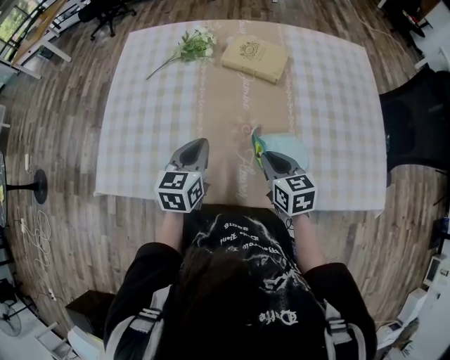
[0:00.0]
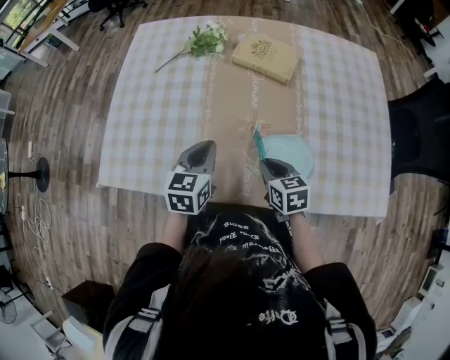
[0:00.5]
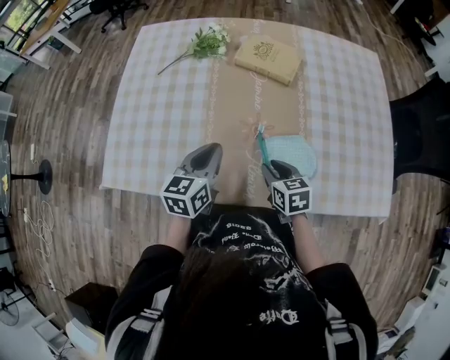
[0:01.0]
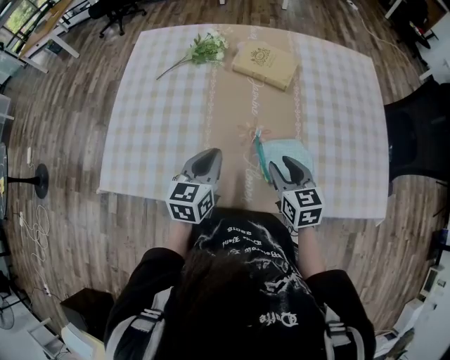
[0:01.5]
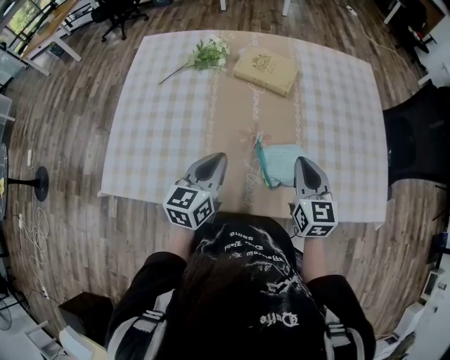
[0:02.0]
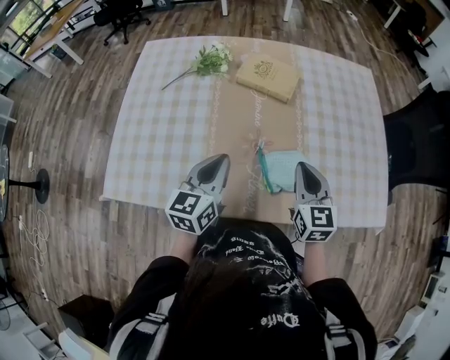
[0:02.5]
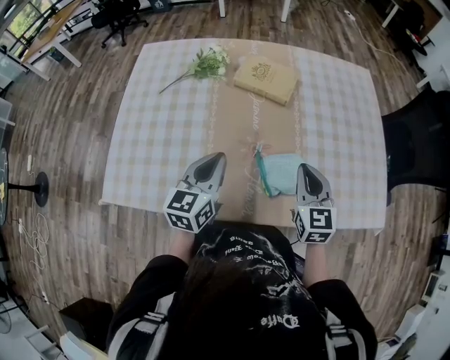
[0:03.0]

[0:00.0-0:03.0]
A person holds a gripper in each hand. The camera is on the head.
0:00.0 to 0:01.5: The right gripper opens up.
0:01.5 to 0:03.0: The two grippers go roughly 5 cm upward. The right gripper closes.

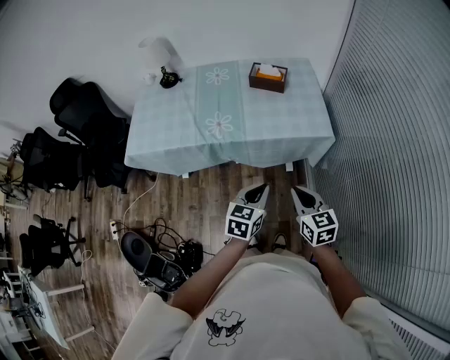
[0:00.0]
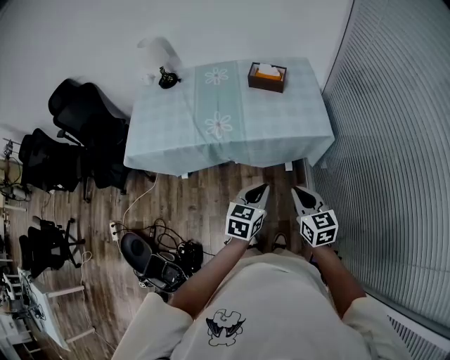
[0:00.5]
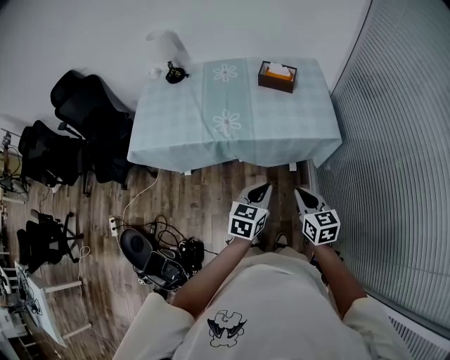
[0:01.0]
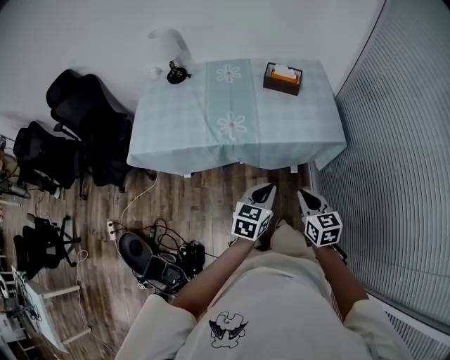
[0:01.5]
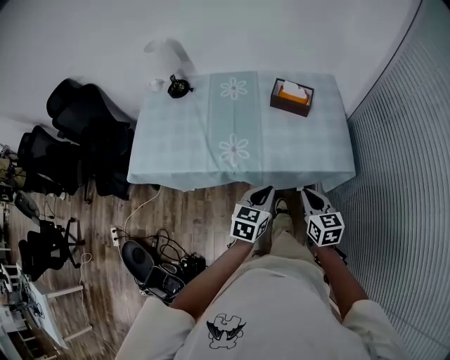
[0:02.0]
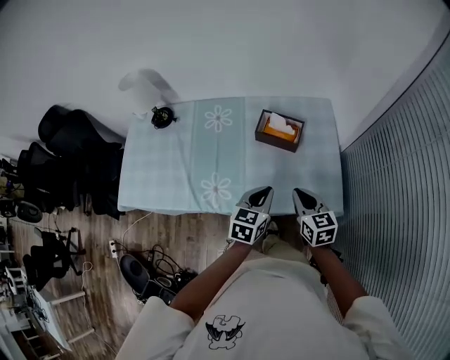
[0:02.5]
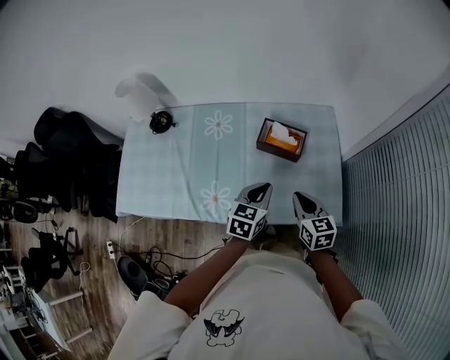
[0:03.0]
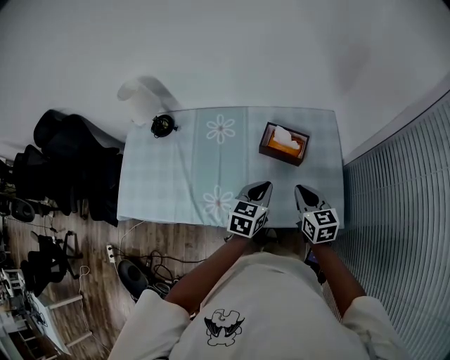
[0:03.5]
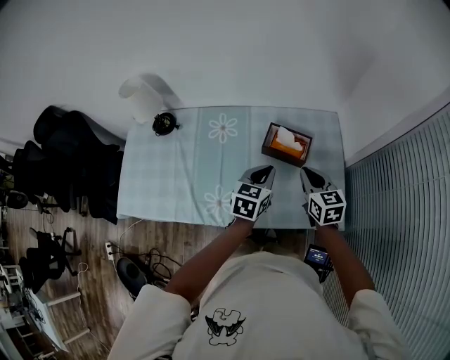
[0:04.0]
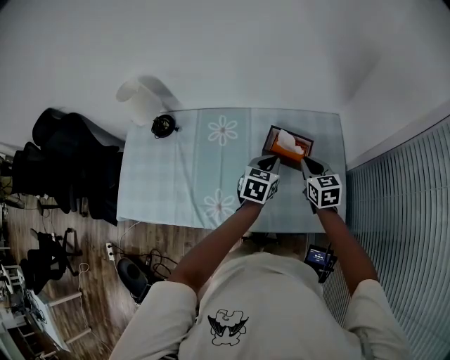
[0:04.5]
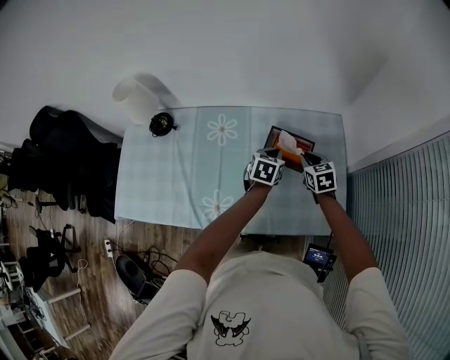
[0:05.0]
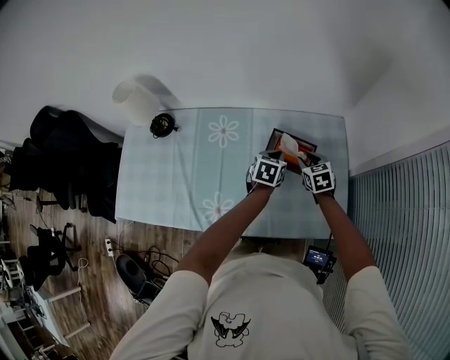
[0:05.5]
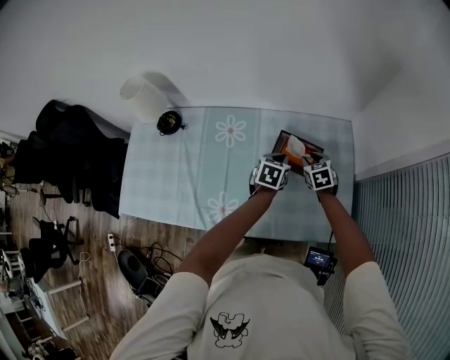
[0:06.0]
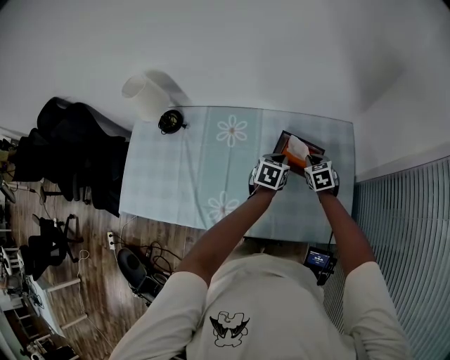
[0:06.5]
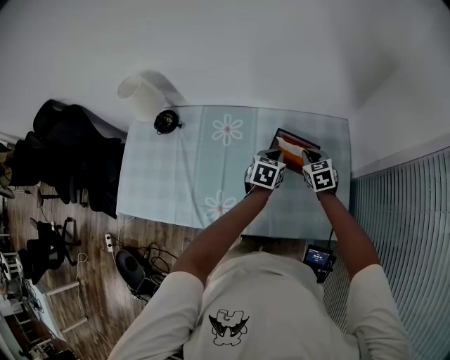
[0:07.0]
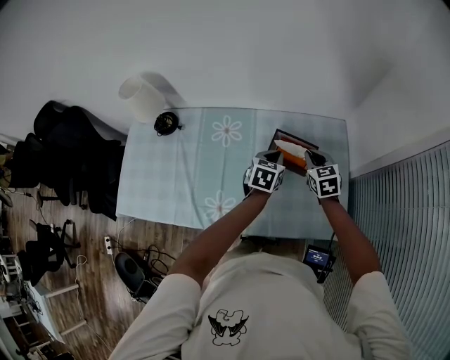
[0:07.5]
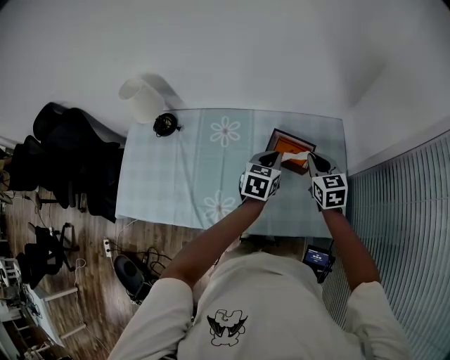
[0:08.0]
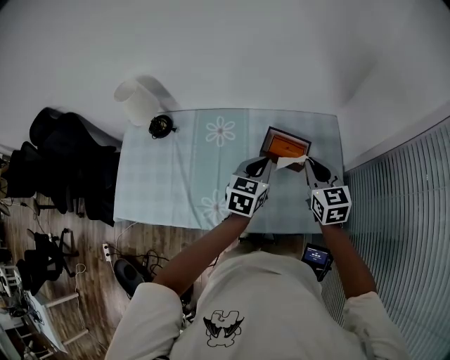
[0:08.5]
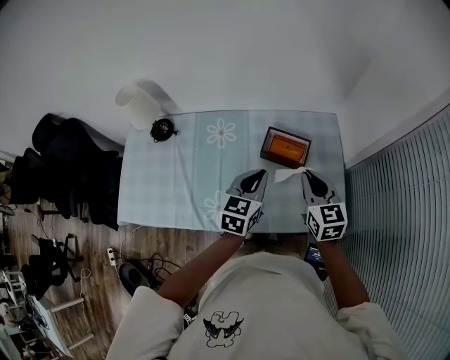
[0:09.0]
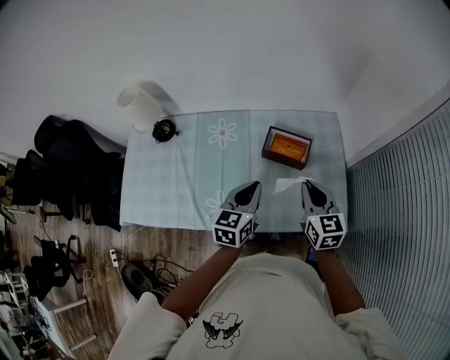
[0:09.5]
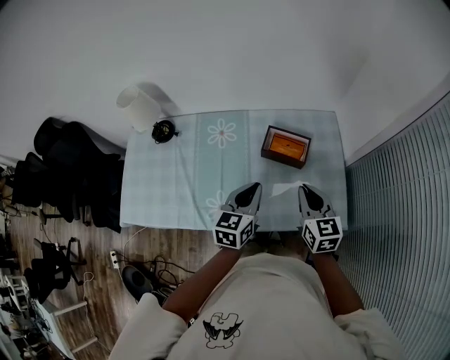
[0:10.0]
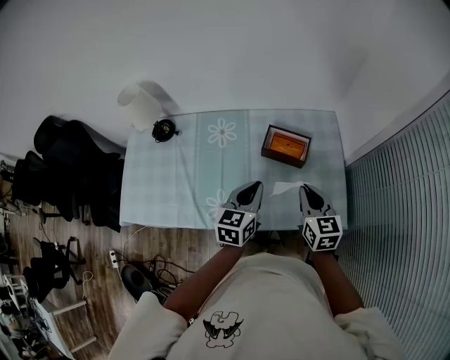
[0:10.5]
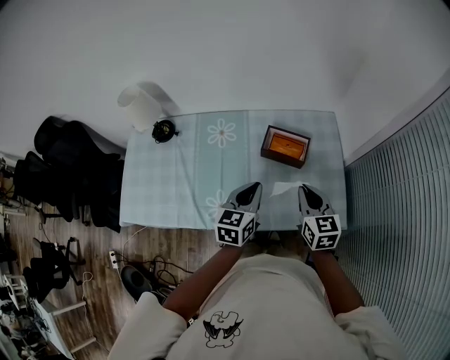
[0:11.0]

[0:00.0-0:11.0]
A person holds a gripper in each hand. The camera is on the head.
0:00.0 to 0:02.0: The right gripper moves forward, some 20 cm. Meanwhile the left gripper travels forward and to the left by roughly 20 cm.
0:02.0 to 0:03.5: Both grippers travel together forward, roughly 25 cm.
0:03.5 to 0:05.5: The grippers both shift forward and downward by about 20 cm. The right gripper turns by some 20 degrees, and opens.
0:05.5 to 0:07.5: The right gripper travels upward by roughly 5 cm, and closes its fingers.
0:07.5 to 0:09.0: The left gripper shifts approximately 15 cm upward and backward. Meanwhile the right gripper shifts roughly 20 cm backward and upward.
0:09.0 to 0:11.0: The right gripper moves roughly 5 cm. Meanwhile the left gripper moves roughly 5 cm.

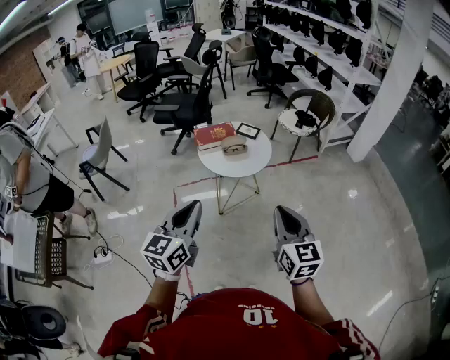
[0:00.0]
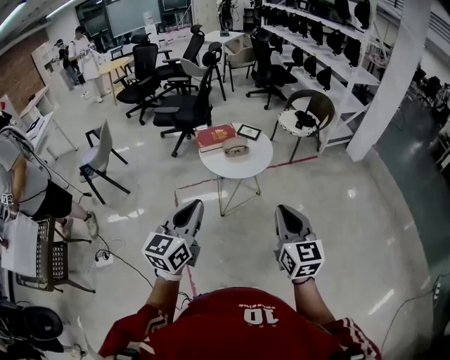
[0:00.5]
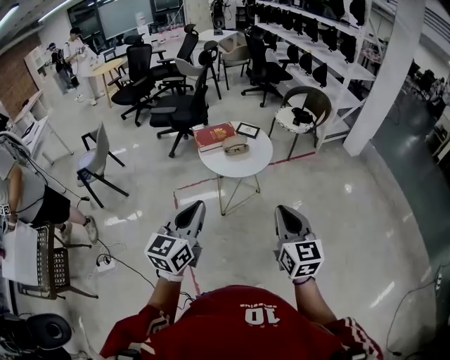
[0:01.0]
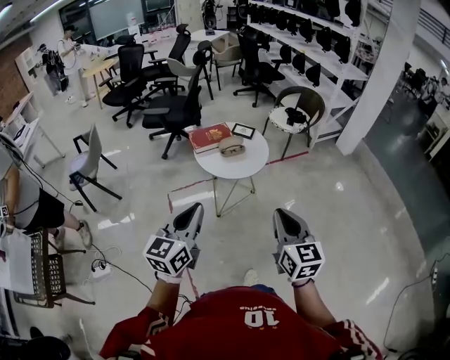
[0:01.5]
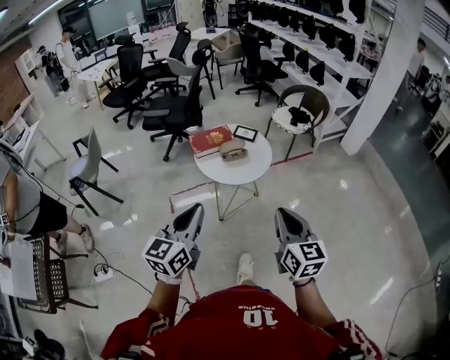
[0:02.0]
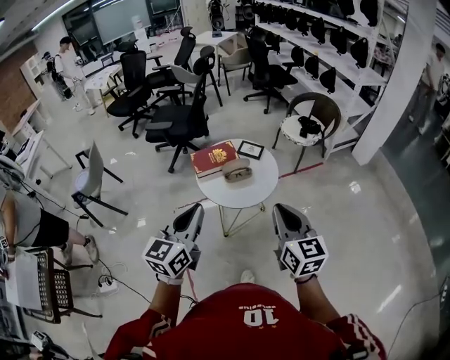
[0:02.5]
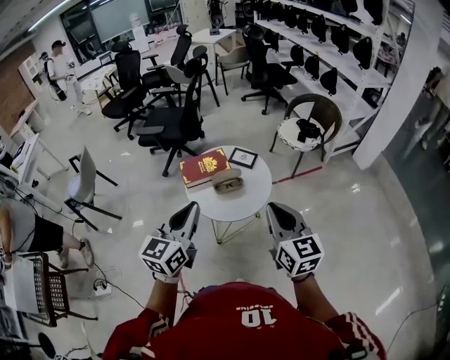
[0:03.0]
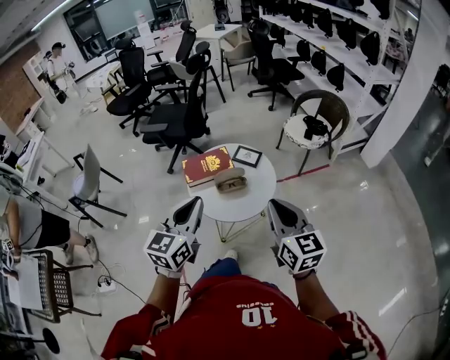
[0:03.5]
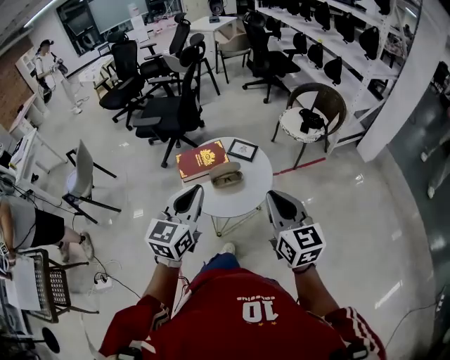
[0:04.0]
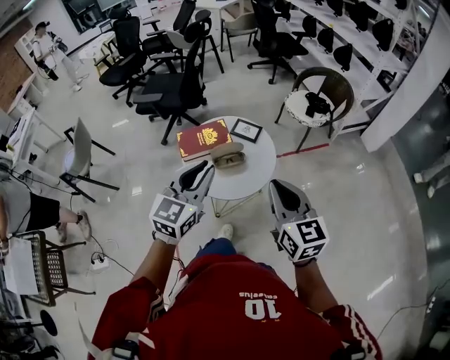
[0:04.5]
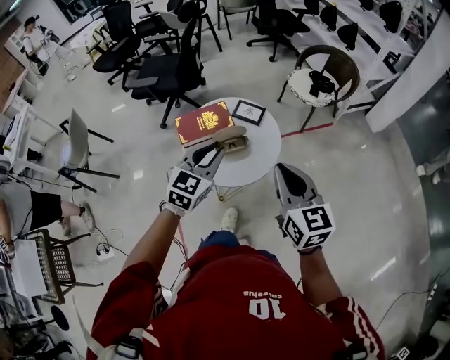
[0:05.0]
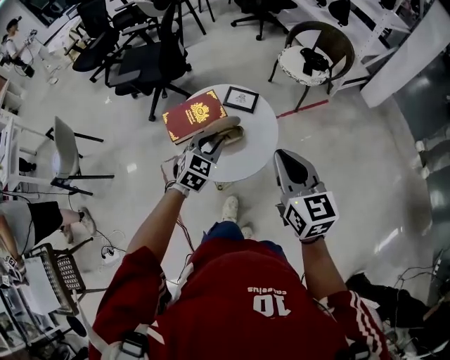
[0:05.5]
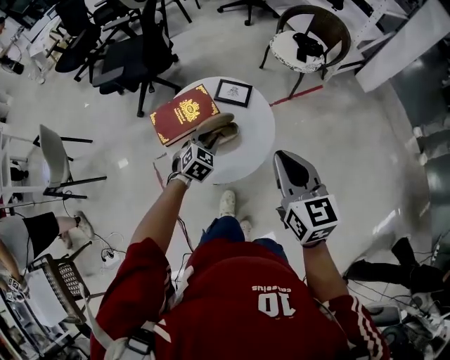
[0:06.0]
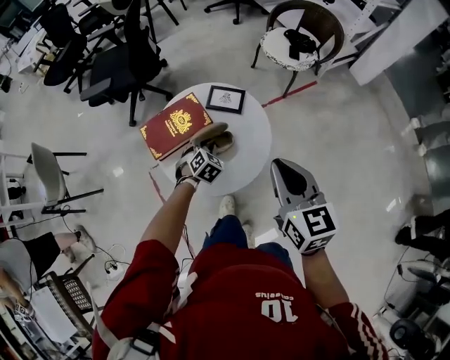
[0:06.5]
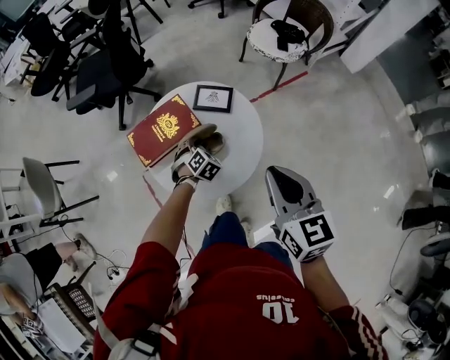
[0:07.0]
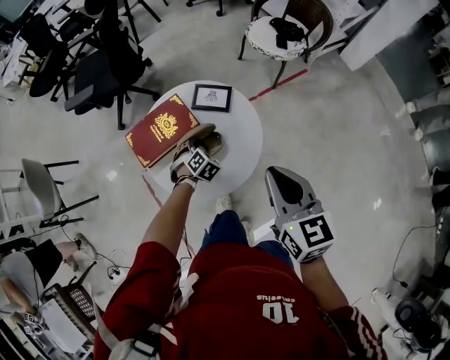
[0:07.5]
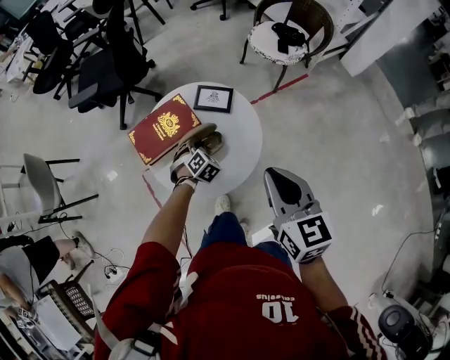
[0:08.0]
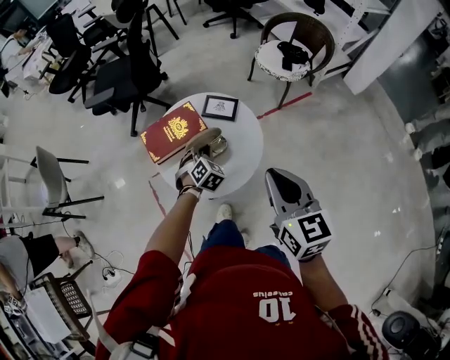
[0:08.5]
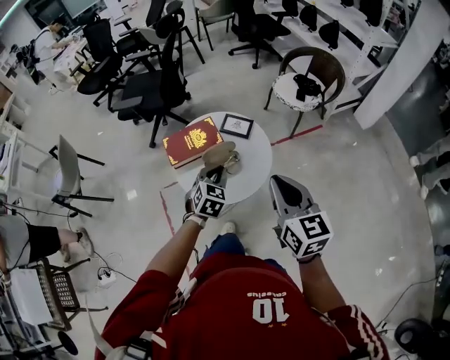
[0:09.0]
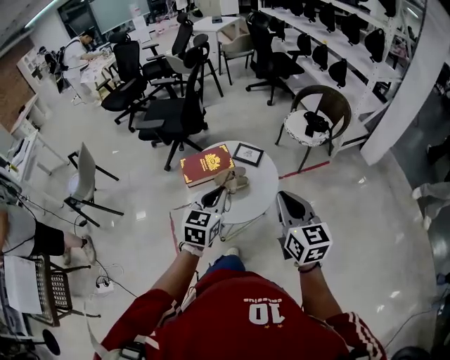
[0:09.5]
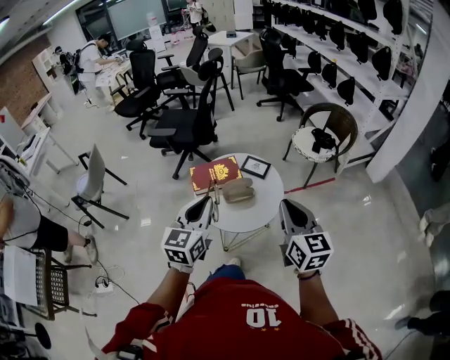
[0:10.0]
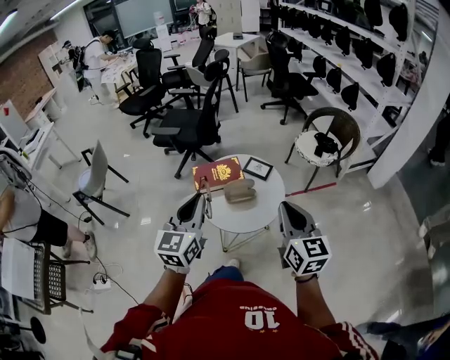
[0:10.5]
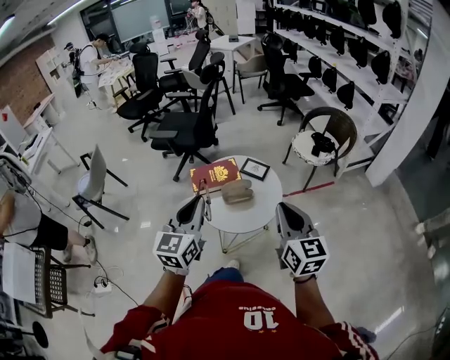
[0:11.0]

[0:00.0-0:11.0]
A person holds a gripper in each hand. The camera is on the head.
0:00.0 to 0:02.0: The right gripper shifts about 10 cm to the left and forward. Meanwhile the left gripper goes some 10 cm forward and to the left.
0:02.0 to 0:03.5: Both grippers move forward, roughly 25 cm.
0:03.5 to 0:05.5: The right gripper is displaced forward and downward by roughly 10 cm. Meanwhile the left gripper shifts about 30 cm downward and forward, and swivels roughly 40 degrees.
0:05.5 to 0:07.5: The right gripper heads downward and forward, covering some 10 cm. The left gripper goes approximately 25 cm downward and forward, and rotates about 30 degrees.
0:07.5 to 0:09.0: The right gripper shifts about 10 cm backward and upward; the left gripper is displaced upward and backward by roughly 25 cm, and swivels about 30 degrees.
0:09.0 to 0:11.0: The left gripper travels upward, backward and to the left by about 30 cm, and points its fingers approximately 40 degrees further upward, while the right gripper travels backward and upward by some 10 cm.

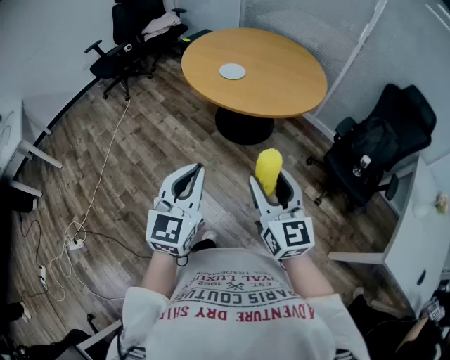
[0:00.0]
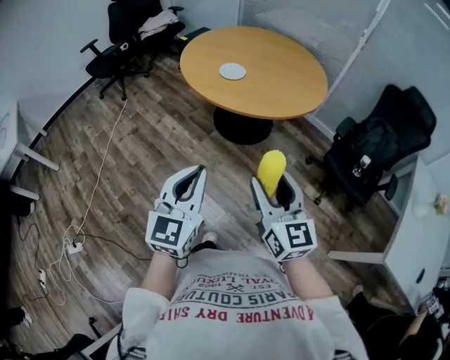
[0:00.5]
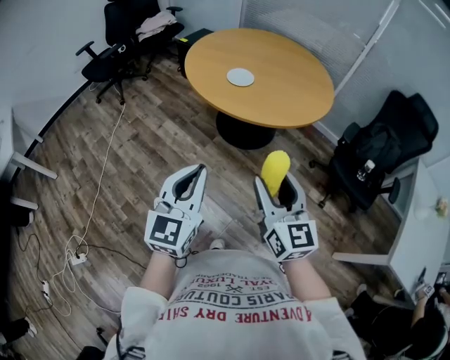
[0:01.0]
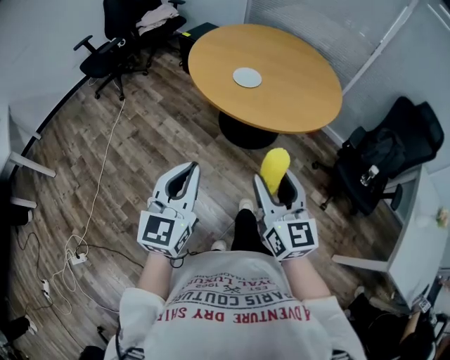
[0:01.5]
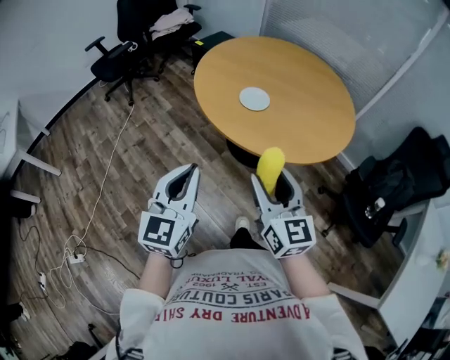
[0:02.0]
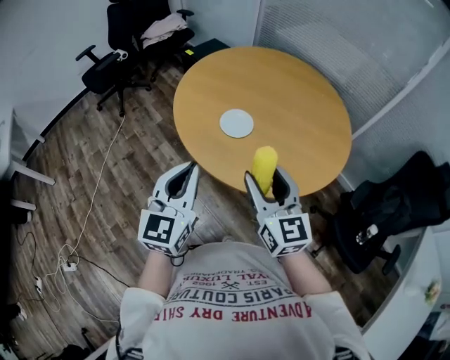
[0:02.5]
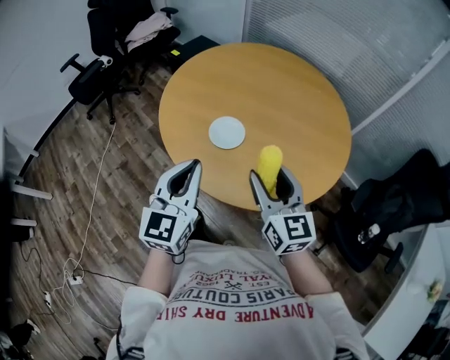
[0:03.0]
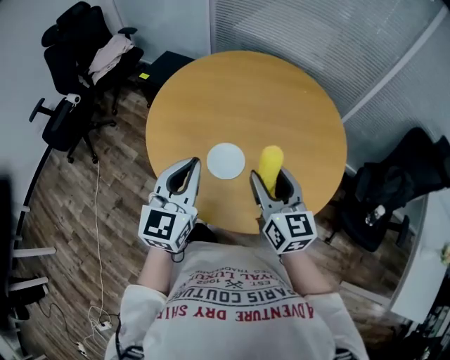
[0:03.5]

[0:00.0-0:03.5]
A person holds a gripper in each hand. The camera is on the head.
0:00.0 to 0:02.0: The left gripper moves forward and to the left, about 25 cm. The right gripper is displaced forward by roughly 25 cm.
0:02.0 to 0:03.5: Both grippers travel together forward, roughly 35 cm.
